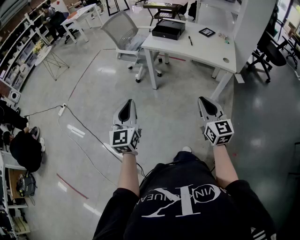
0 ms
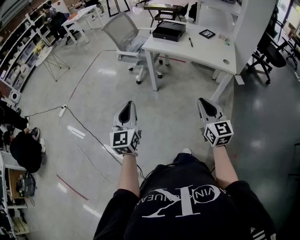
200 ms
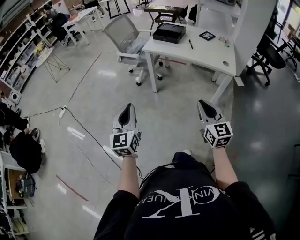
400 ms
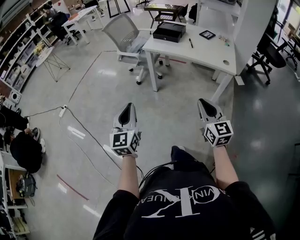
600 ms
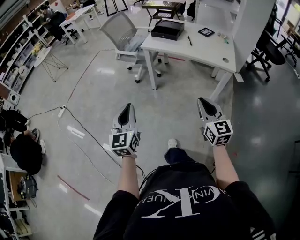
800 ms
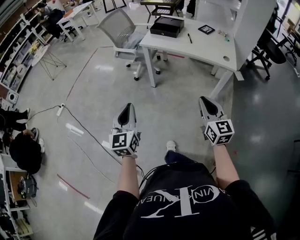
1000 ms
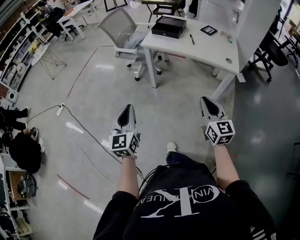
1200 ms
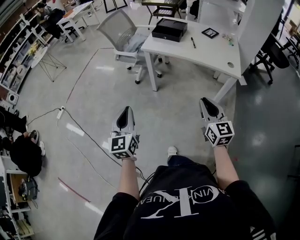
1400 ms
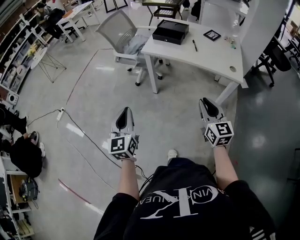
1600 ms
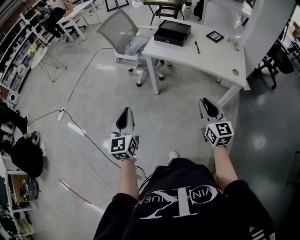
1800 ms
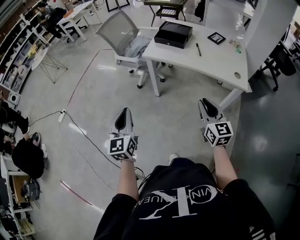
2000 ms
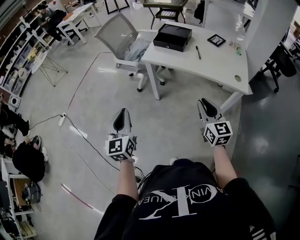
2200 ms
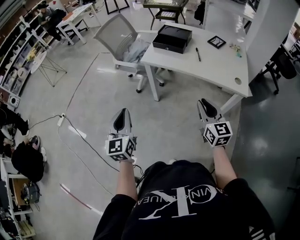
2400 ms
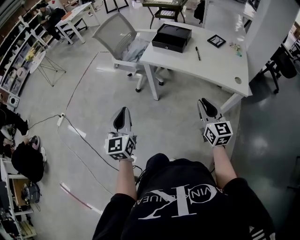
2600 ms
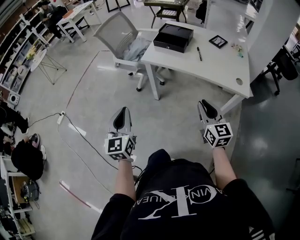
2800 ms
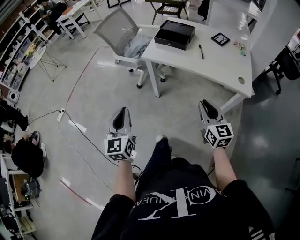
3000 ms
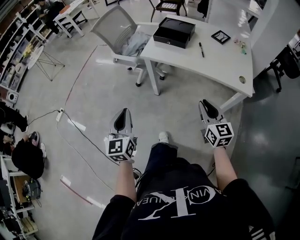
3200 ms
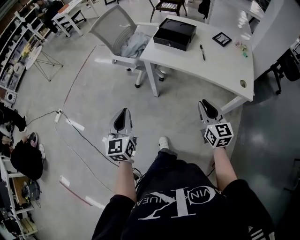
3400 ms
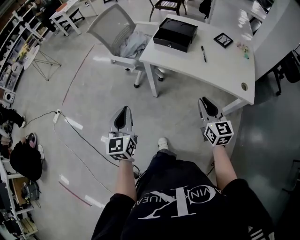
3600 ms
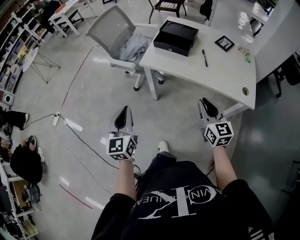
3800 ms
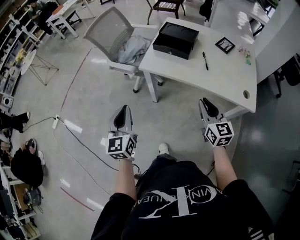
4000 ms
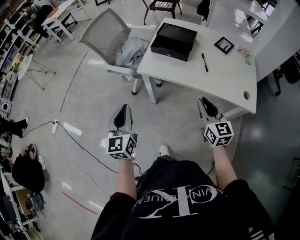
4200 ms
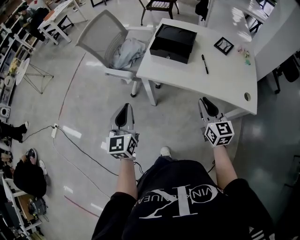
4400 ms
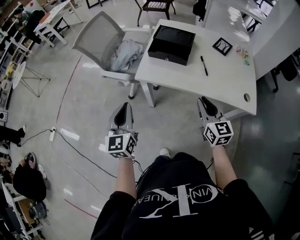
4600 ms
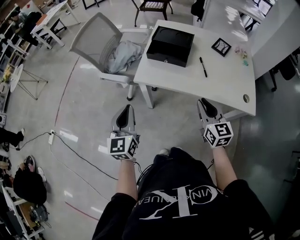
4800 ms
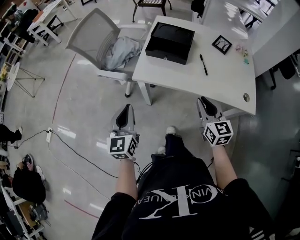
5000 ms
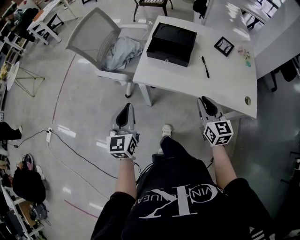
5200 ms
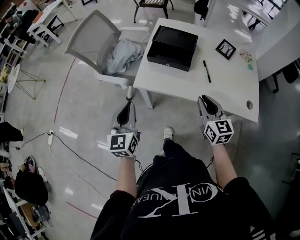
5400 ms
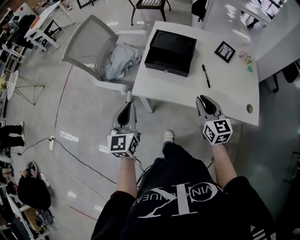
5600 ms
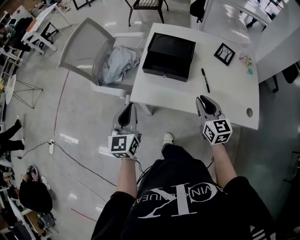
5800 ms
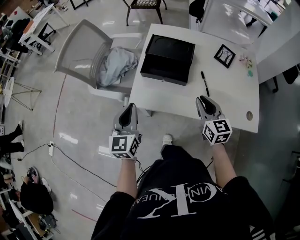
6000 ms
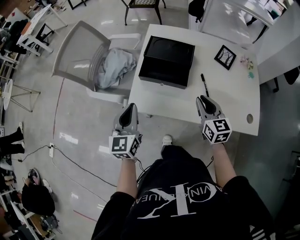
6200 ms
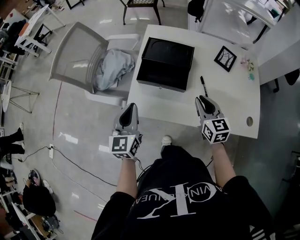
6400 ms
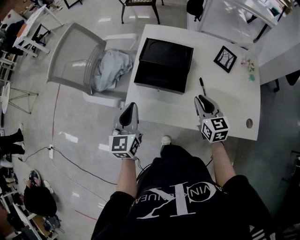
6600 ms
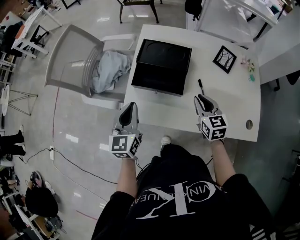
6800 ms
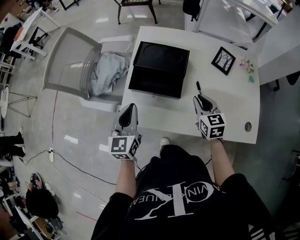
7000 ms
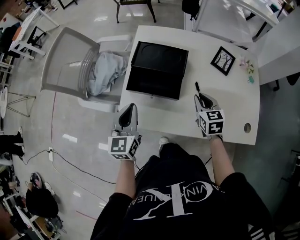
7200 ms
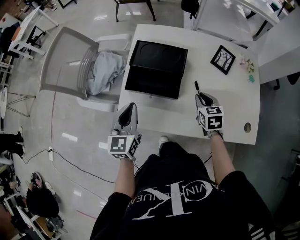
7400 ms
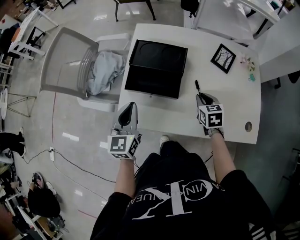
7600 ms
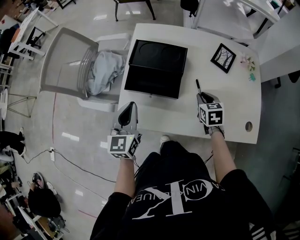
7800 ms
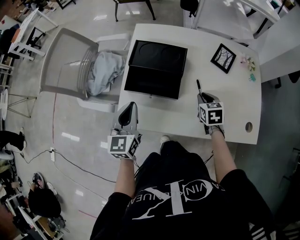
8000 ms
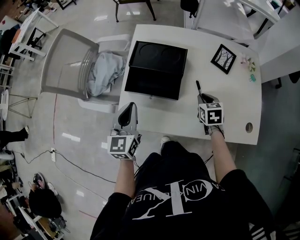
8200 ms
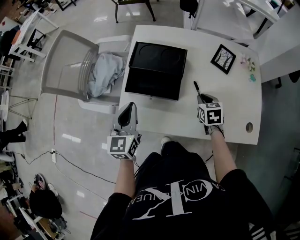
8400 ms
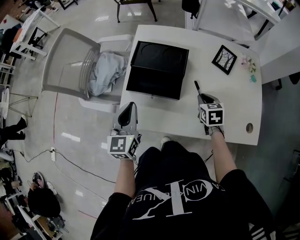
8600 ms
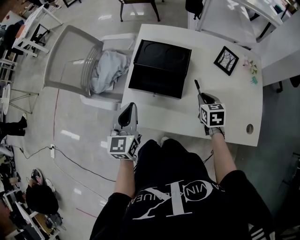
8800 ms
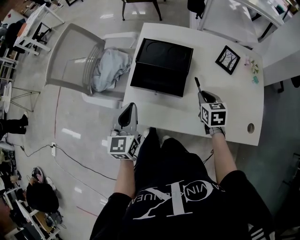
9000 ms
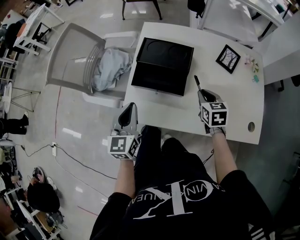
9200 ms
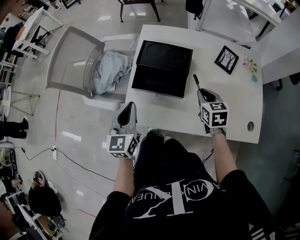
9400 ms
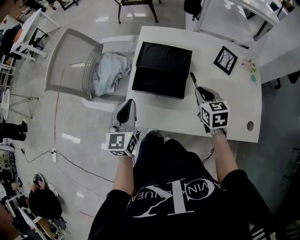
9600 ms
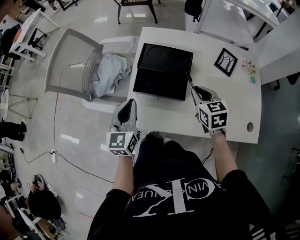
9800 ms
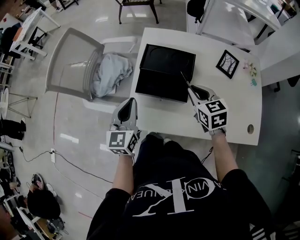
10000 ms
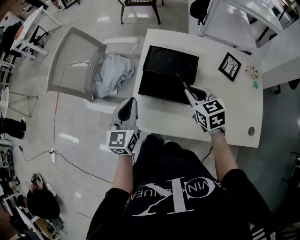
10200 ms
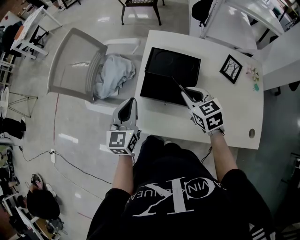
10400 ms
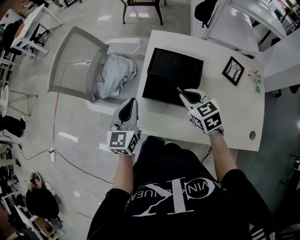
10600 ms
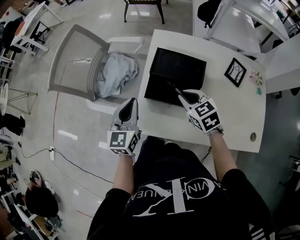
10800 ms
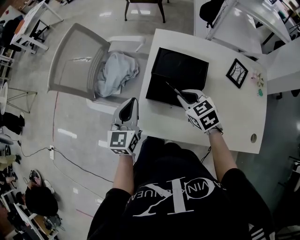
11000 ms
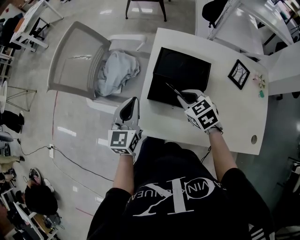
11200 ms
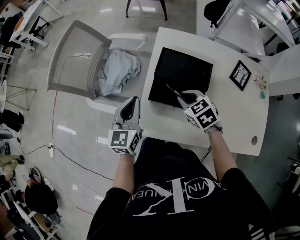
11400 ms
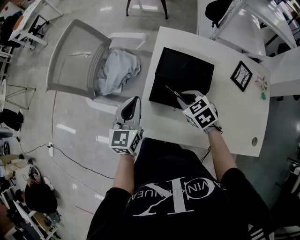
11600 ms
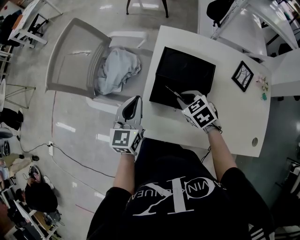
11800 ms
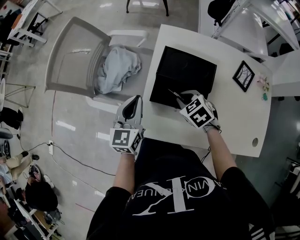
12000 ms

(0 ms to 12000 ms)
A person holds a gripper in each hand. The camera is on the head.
0 ms - 1600 ms: The two grippers go approximately 10 cm forward.
1600 ms - 3000 ms: The two grippers go approximately 10 cm forward.
3000 ms - 4400 ms: The two grippers go approximately 20 cm forward.
4400 ms - 6000 ms: Both grippers move forward, some 20 cm.
6000 ms - 7600 ms: The left gripper moves forward and to the right, approximately 15 cm. The right gripper moves forward, downward and to the right, some 20 cm, and swivels about 30 degrees.
7600 ms - 9000 ms: The grippers move only a little.
9000 ms - 10400 ms: The left gripper moves forward, approximately 5 cm, while the right gripper goes about 15 cm to the left and upward, and swivels roughly 20 degrees.
10400 ms - 12000 ms: The left gripper shifts by roughly 5 cm; the right gripper travels downward and to the left by approximately 10 cm, and turns by approximately 30 degrees.

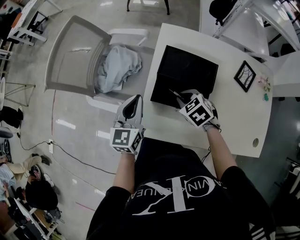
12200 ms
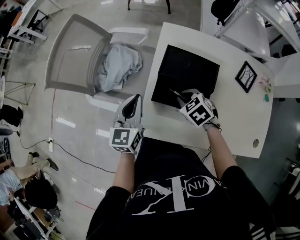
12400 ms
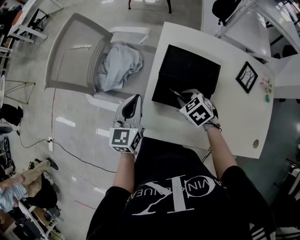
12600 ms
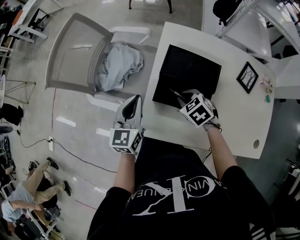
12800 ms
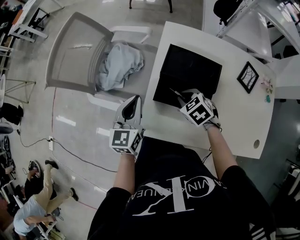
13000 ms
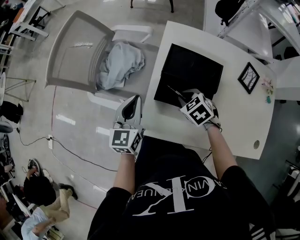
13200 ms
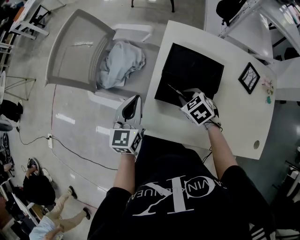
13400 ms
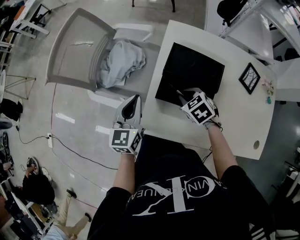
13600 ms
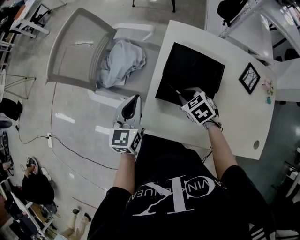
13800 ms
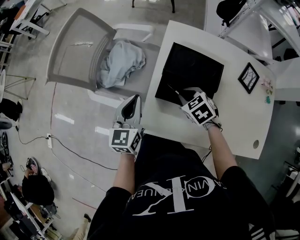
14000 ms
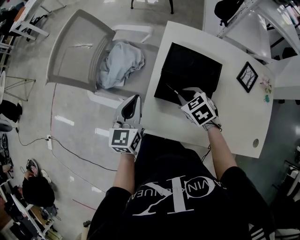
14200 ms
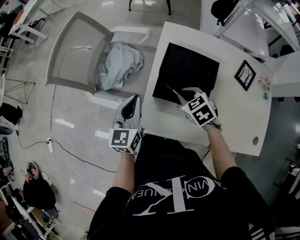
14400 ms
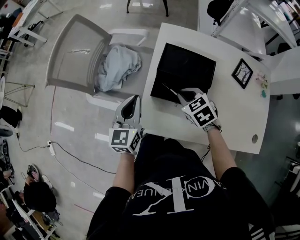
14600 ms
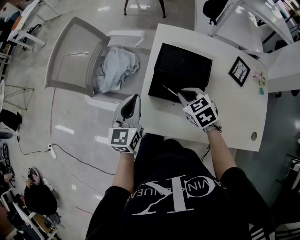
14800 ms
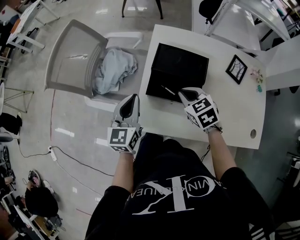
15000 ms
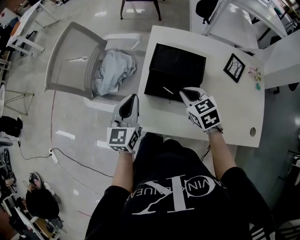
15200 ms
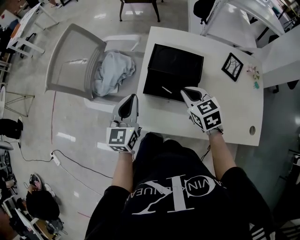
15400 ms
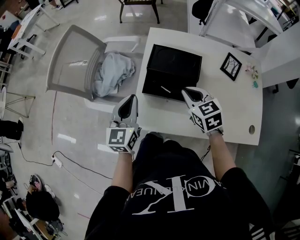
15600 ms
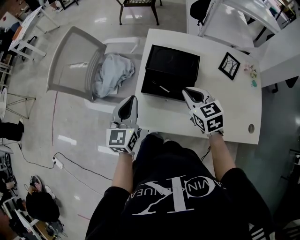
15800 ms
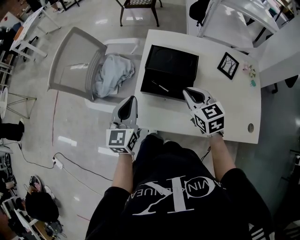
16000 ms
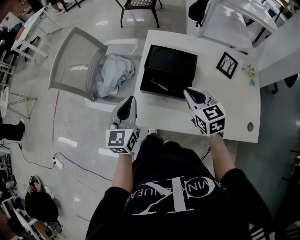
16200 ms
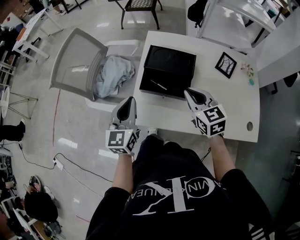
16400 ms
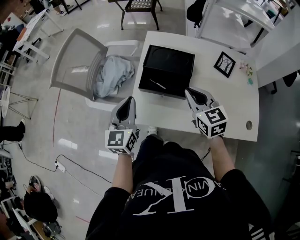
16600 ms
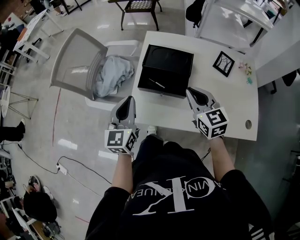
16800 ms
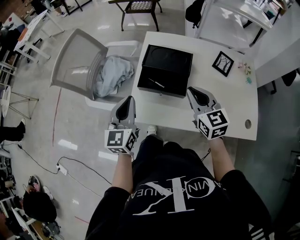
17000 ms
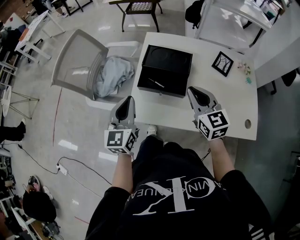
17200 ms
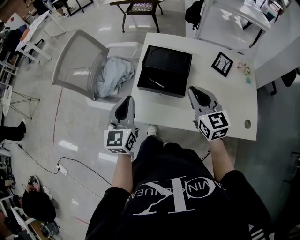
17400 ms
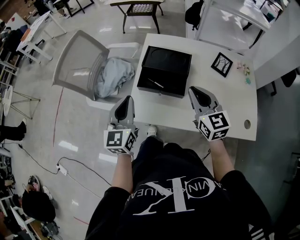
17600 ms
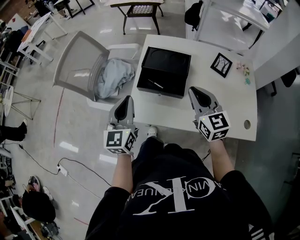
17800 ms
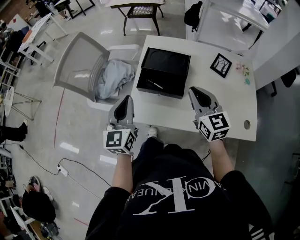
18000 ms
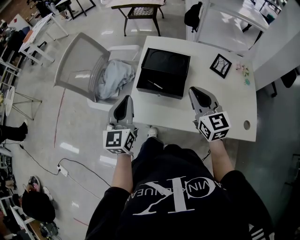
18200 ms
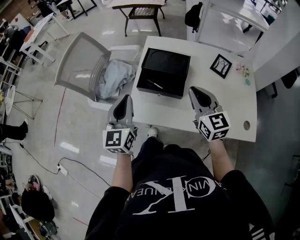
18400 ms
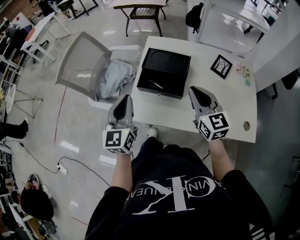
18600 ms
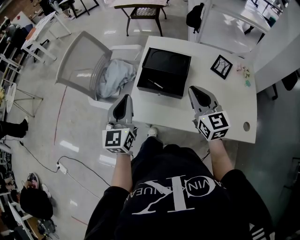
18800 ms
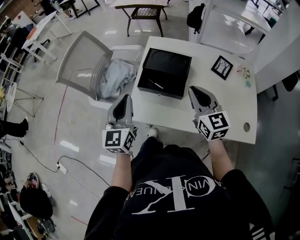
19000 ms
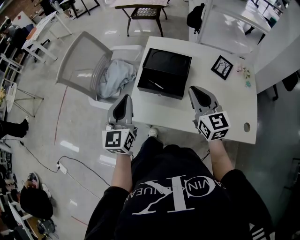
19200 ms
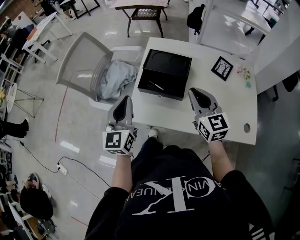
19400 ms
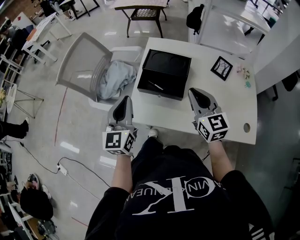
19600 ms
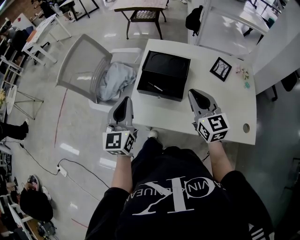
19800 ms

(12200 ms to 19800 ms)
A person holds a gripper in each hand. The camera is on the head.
12200 ms - 13800 ms: The grippers move only a little.
13800 ms - 15200 ms: The left gripper shifts by roughly 5 cm. The right gripper is displaced upward by approximately 10 cm.
15200 ms - 16800 ms: The left gripper shifts roughly 5 cm backward; the right gripper travels upward and backward by about 10 cm, and swivels approximately 20 degrees.
16800 ms - 18200 ms: There are only small adjustments of the grippers.
18200 ms - 19800 ms: Both grippers stay put.

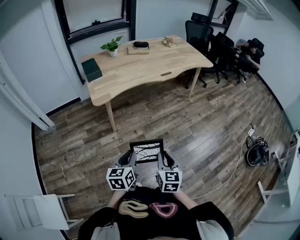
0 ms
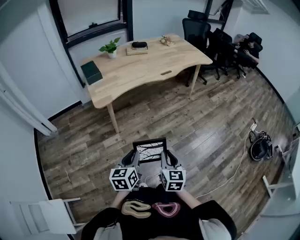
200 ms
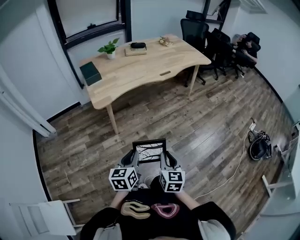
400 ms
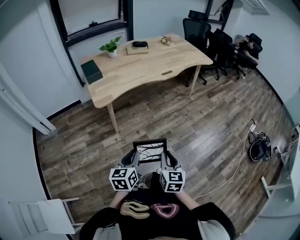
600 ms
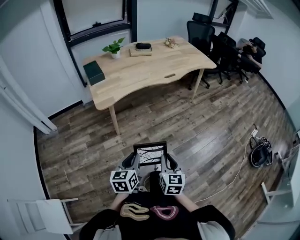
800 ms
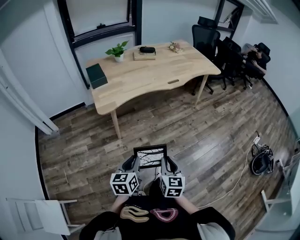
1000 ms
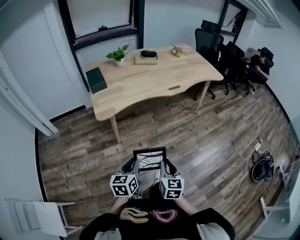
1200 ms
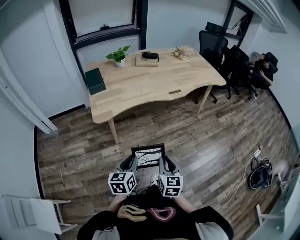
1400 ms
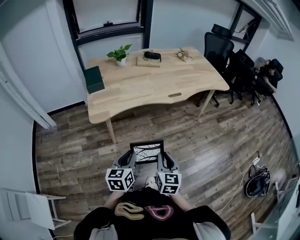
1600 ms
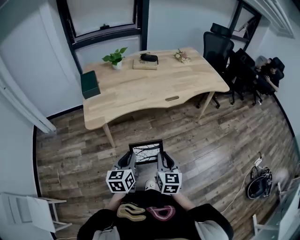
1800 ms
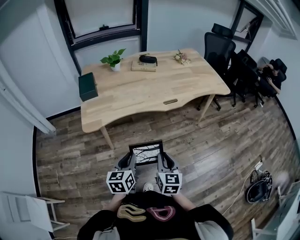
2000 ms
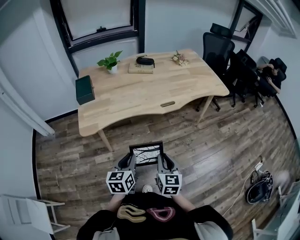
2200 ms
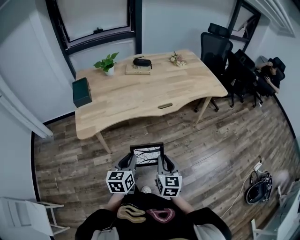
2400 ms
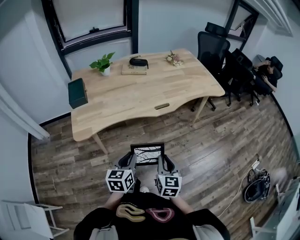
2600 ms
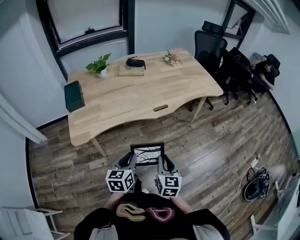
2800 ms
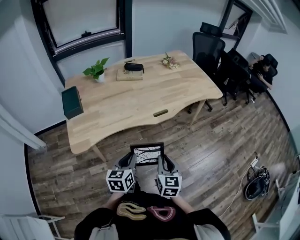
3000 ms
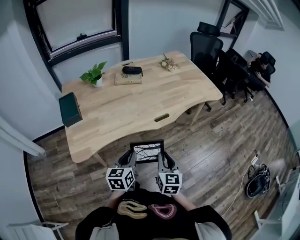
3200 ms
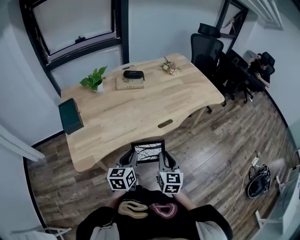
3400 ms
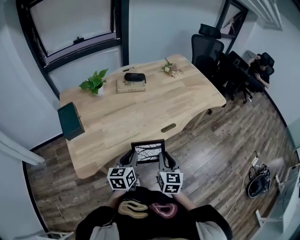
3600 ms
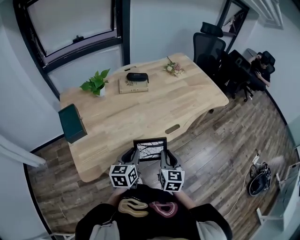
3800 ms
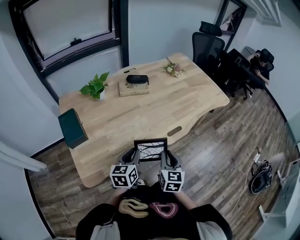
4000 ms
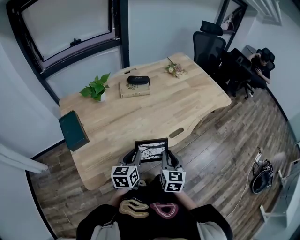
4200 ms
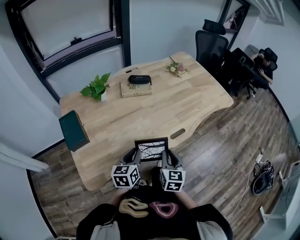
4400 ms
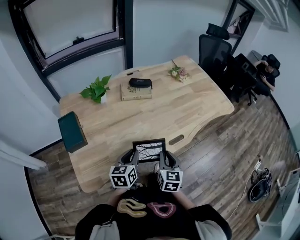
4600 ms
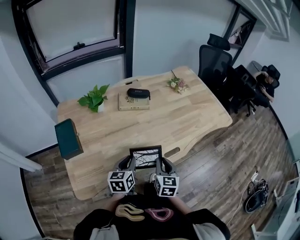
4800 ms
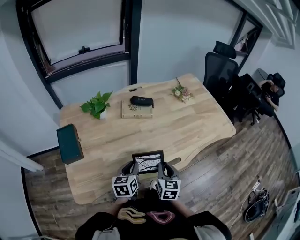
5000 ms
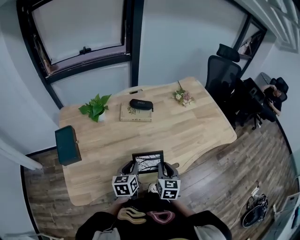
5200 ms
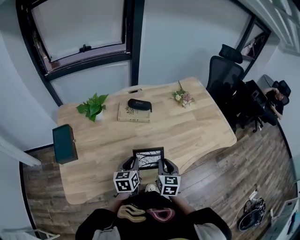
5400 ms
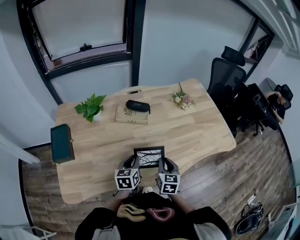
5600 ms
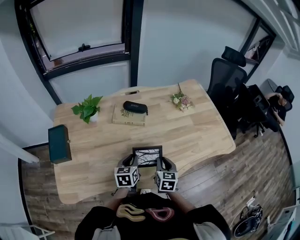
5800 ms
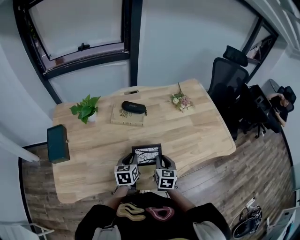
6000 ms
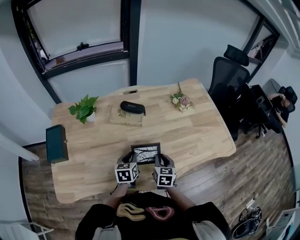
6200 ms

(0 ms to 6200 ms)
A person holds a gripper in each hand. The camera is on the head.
0 ms - 1600 ms: The two grippers go roughly 20 cm forward.
1600 ms - 3200 ms: The grippers both shift forward by about 25 cm.
3200 ms - 4600 ms: Both grippers travel together forward and to the left, roughly 20 cm.
4600 ms - 6200 ms: Both grippers move forward and to the right, roughly 25 cm.
